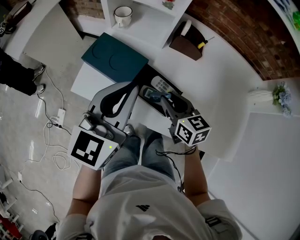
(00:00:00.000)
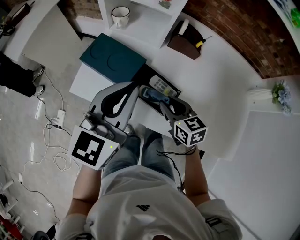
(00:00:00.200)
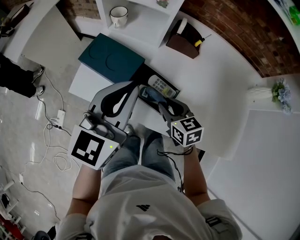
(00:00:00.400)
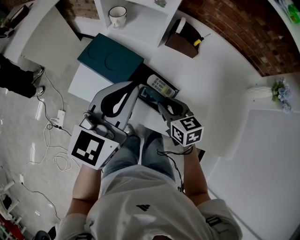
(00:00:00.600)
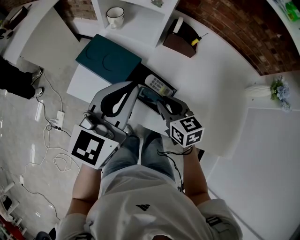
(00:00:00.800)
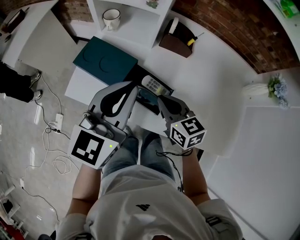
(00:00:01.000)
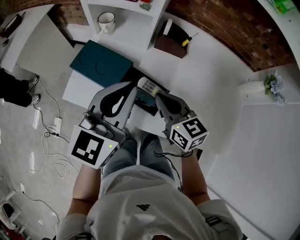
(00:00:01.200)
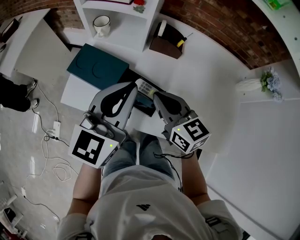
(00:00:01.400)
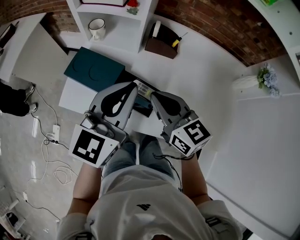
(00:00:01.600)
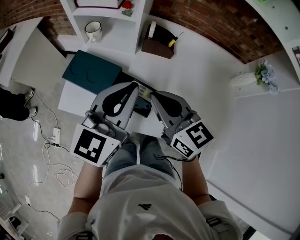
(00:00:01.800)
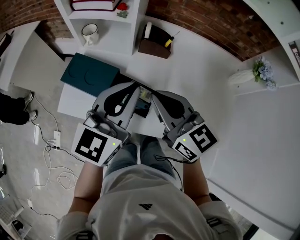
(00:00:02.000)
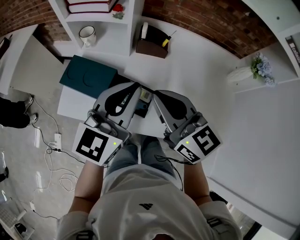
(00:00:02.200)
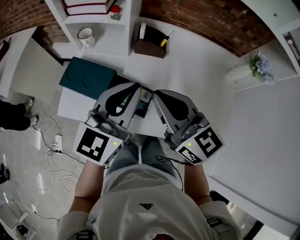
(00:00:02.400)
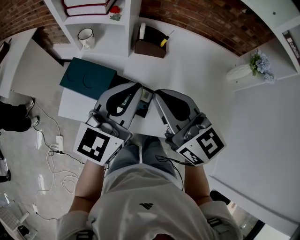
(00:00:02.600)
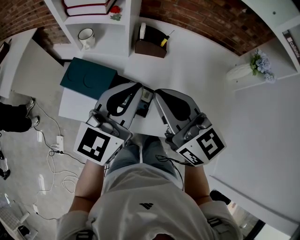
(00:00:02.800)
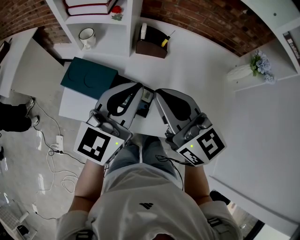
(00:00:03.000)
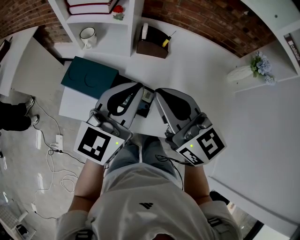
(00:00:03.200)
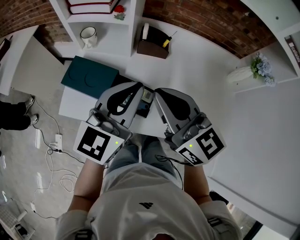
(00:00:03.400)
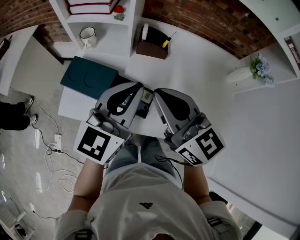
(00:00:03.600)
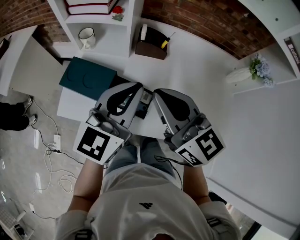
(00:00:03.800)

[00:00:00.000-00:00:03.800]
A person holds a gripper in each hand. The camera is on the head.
00:00:00.000 to 00:00:01.200: The right gripper heads upward, covering about 5 cm, and closes up.
00:00:01.200 to 00:00:02.600: The left gripper goes some 5 cm to the right. The right gripper moves upward, about 15 cm.
00:00:02.600 to 00:00:03.800: The two grippers keep their place.

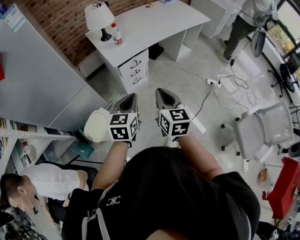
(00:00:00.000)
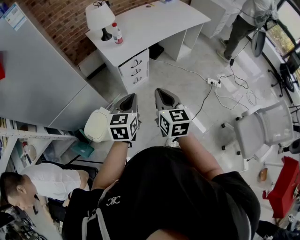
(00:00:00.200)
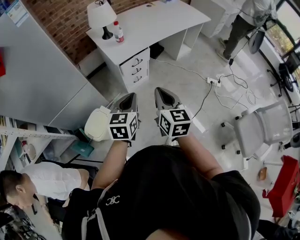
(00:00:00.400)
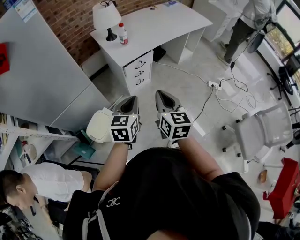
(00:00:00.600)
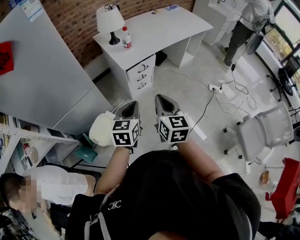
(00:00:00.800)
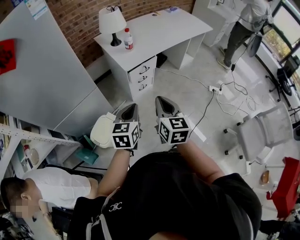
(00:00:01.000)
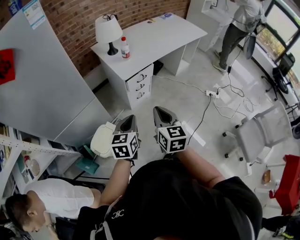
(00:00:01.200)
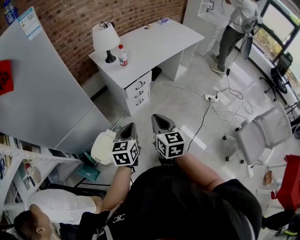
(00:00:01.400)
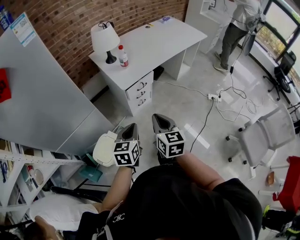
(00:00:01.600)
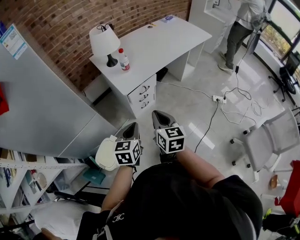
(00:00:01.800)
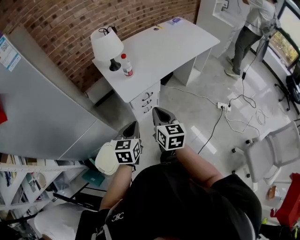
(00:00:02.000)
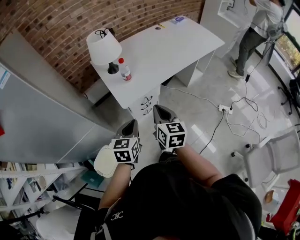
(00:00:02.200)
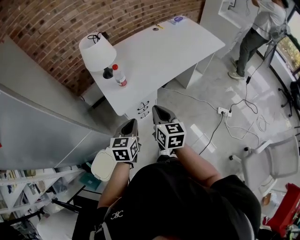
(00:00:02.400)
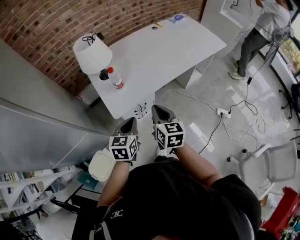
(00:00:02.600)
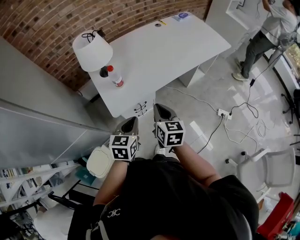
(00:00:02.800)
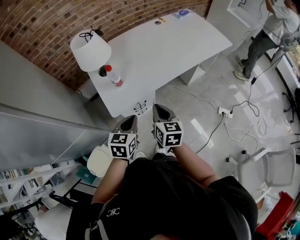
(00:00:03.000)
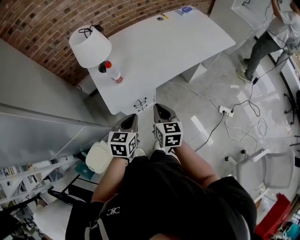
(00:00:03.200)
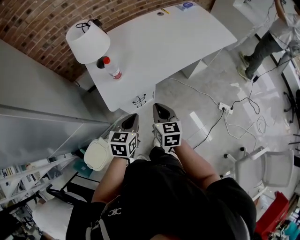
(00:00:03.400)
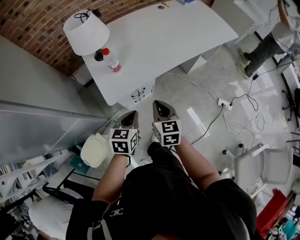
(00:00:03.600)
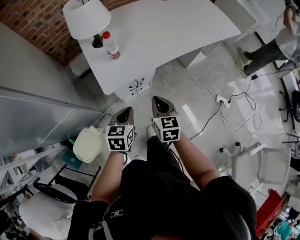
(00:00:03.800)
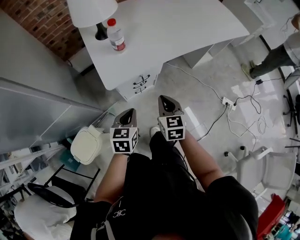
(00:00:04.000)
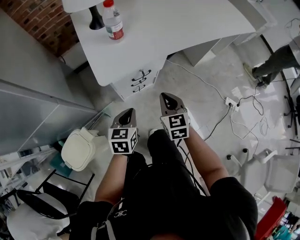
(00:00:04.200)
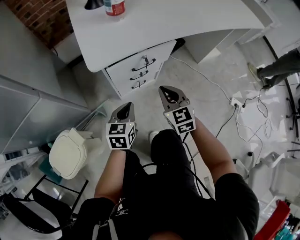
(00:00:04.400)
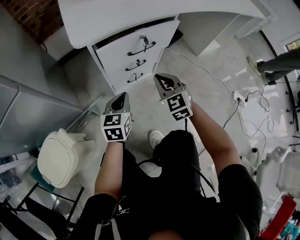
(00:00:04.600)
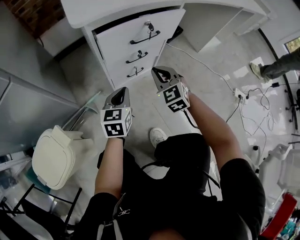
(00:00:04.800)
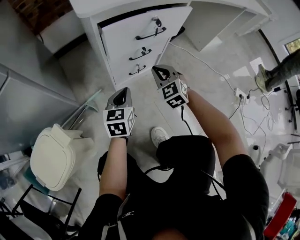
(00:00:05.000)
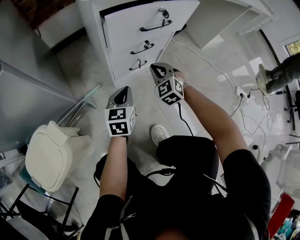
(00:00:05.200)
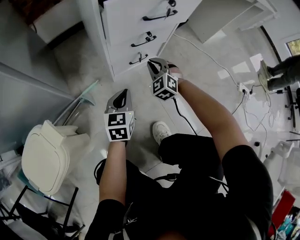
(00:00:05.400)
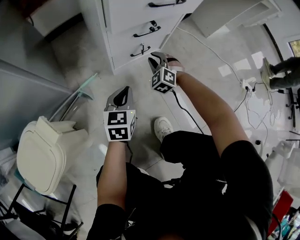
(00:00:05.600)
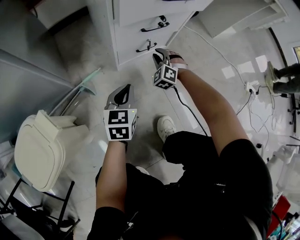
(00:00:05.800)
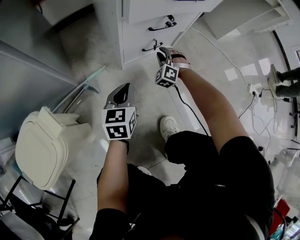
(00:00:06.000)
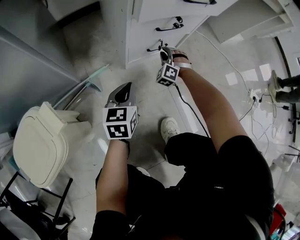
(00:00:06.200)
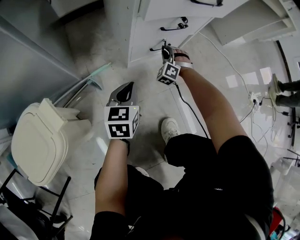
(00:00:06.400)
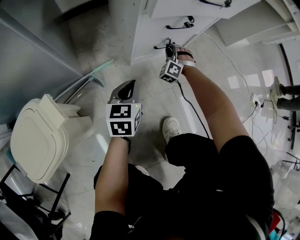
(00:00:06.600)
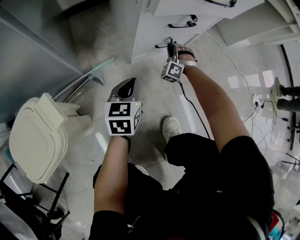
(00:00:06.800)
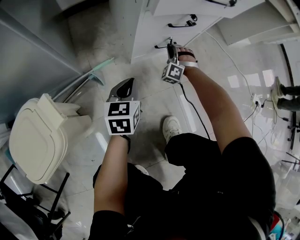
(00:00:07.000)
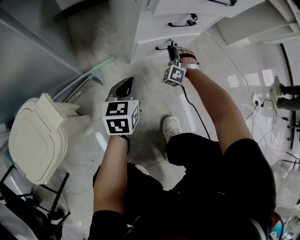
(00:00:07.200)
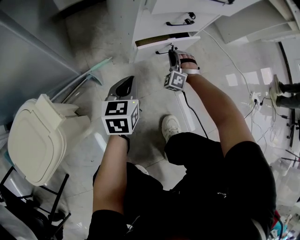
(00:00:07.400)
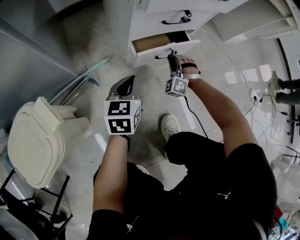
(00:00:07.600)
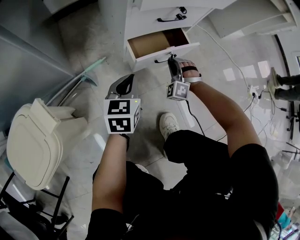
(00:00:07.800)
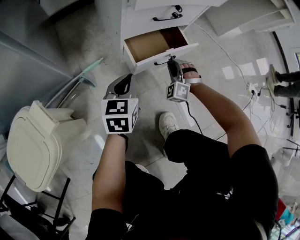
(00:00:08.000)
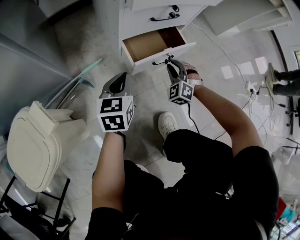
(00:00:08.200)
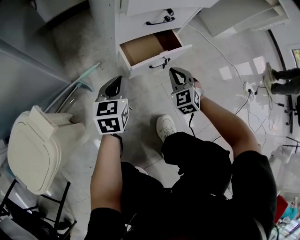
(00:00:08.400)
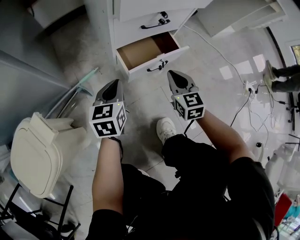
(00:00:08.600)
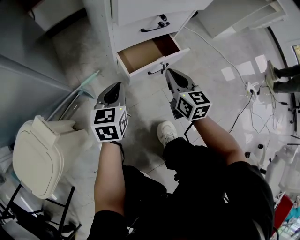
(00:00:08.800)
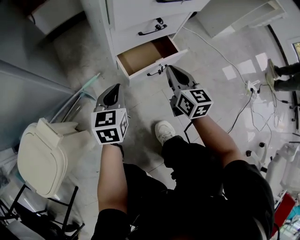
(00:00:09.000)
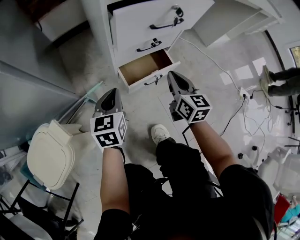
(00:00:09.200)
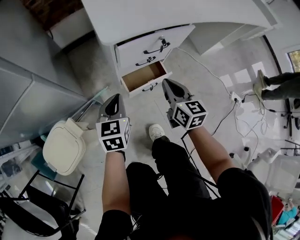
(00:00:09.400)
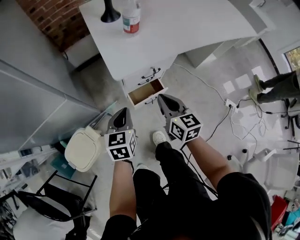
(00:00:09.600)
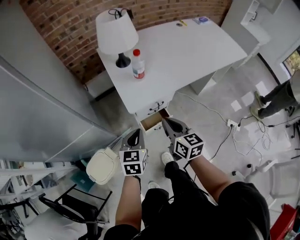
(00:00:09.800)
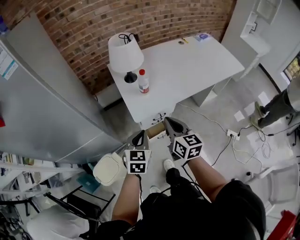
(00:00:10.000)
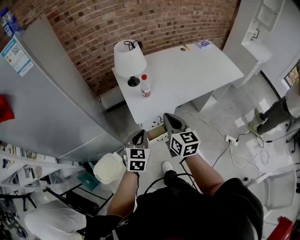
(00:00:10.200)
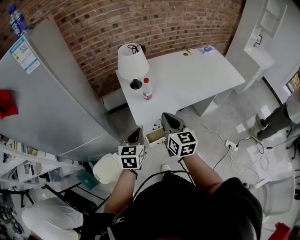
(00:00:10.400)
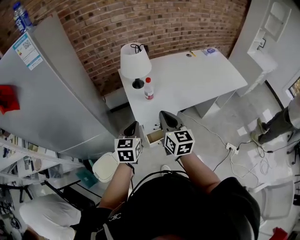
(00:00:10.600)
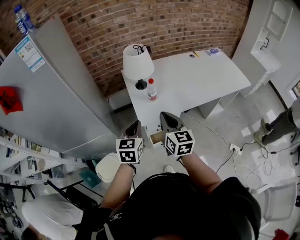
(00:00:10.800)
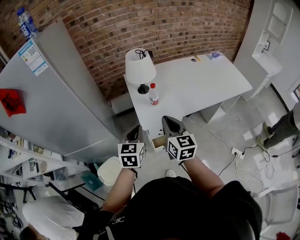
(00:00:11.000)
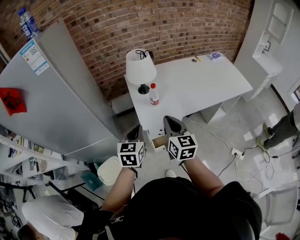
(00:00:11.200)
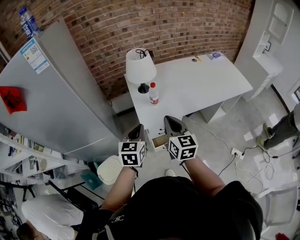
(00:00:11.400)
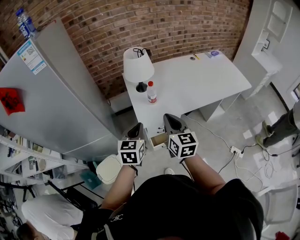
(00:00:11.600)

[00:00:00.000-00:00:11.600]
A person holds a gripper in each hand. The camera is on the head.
00:00:00.000 to 00:00:01.400: Both grippers move to the left, some 10 cm.
00:00:01.400 to 00:00:02.800: Both grippers move forward, about 35 cm.
00:00:02.800 to 00:00:04.400: The grippers both shift downward by about 40 cm. The right gripper swivels approximately 40 degrees.
00:00:04.400 to 00:00:05.800: The right gripper goes roughly 35 cm downward, and rotates around the line of its fingers by about 50 degrees, counterclockwise from behind. The left gripper heads downward, covering roughly 20 cm.
00:00:05.800 to 00:00:07.200: The left gripper ends up roughly 5 cm from where it was. The right gripper swivels some 20 degrees.
00:00:07.200 to 00:00:08.800: The right gripper goes approximately 20 cm upward and backward, and twists roughly 90 degrees clockwise, seen from behind.
00:00:08.800 to 00:00:10.200: The two grippers go some 70 cm upward.
00:00:10.200 to 00:00:11.600: The left gripper goes approximately 5 cm upward.

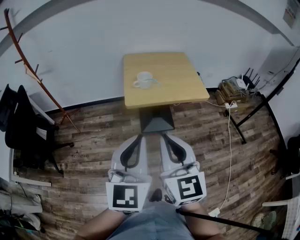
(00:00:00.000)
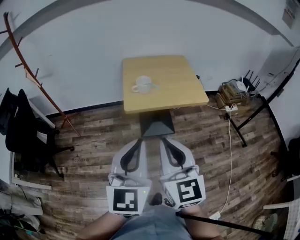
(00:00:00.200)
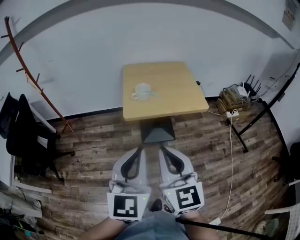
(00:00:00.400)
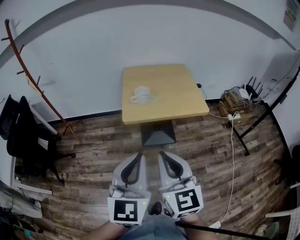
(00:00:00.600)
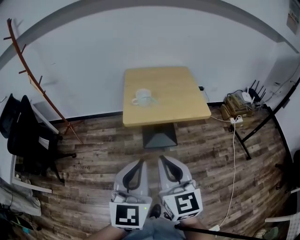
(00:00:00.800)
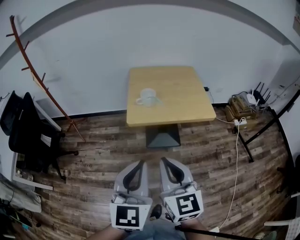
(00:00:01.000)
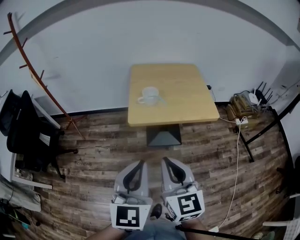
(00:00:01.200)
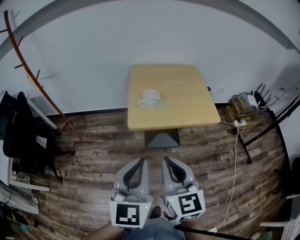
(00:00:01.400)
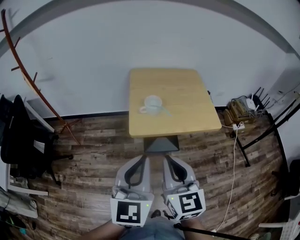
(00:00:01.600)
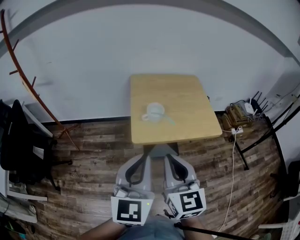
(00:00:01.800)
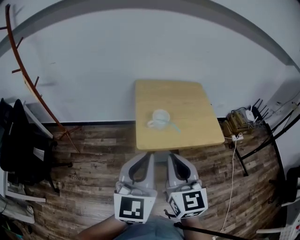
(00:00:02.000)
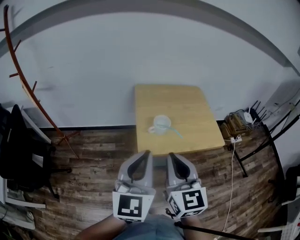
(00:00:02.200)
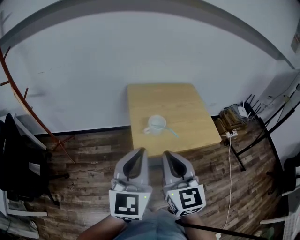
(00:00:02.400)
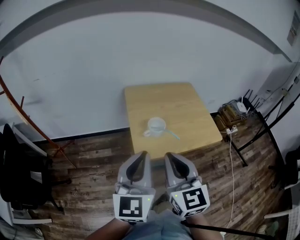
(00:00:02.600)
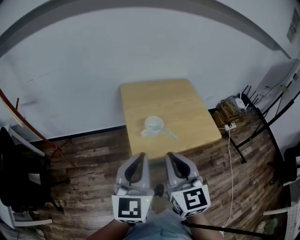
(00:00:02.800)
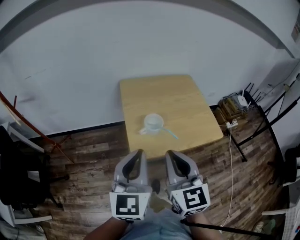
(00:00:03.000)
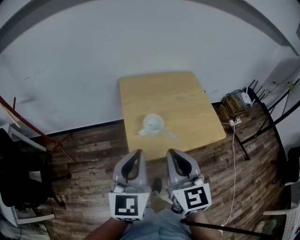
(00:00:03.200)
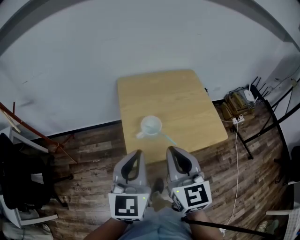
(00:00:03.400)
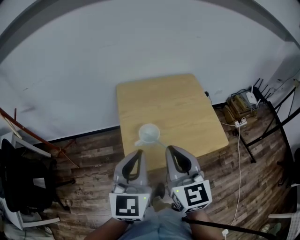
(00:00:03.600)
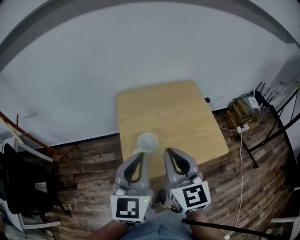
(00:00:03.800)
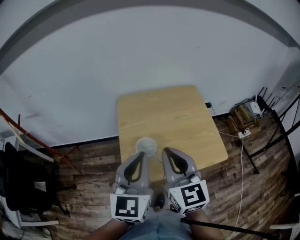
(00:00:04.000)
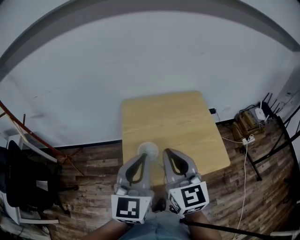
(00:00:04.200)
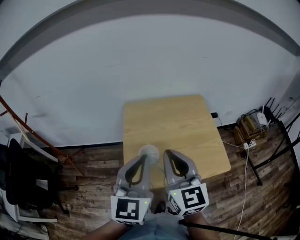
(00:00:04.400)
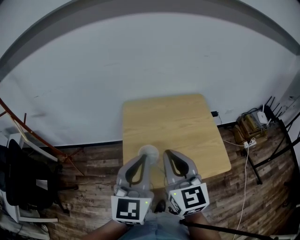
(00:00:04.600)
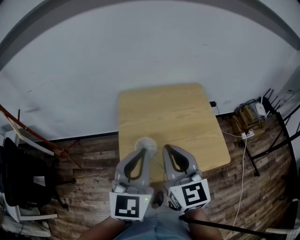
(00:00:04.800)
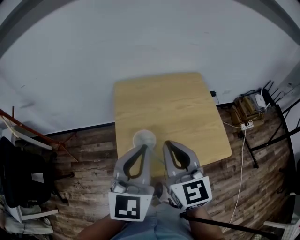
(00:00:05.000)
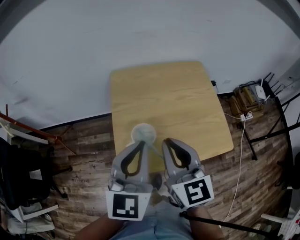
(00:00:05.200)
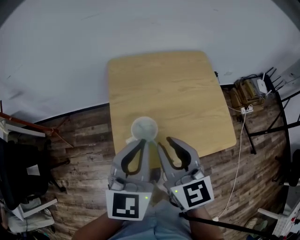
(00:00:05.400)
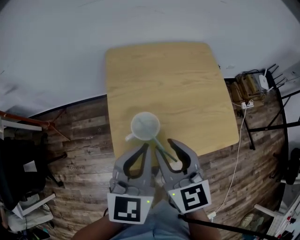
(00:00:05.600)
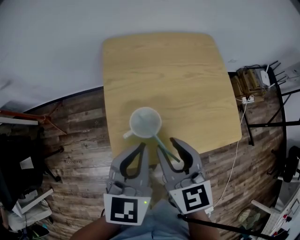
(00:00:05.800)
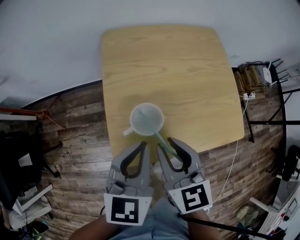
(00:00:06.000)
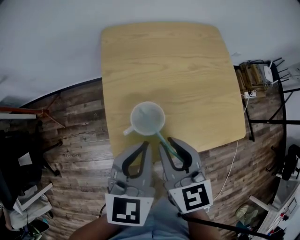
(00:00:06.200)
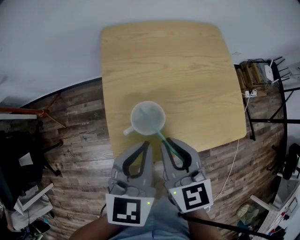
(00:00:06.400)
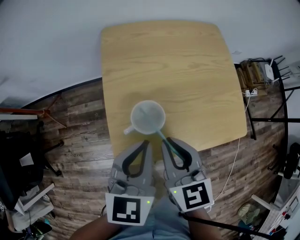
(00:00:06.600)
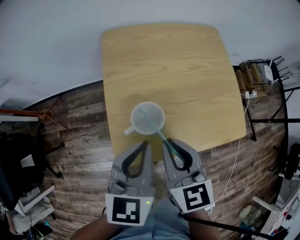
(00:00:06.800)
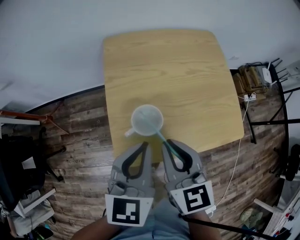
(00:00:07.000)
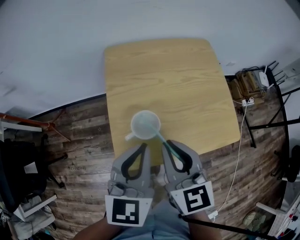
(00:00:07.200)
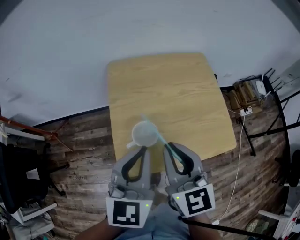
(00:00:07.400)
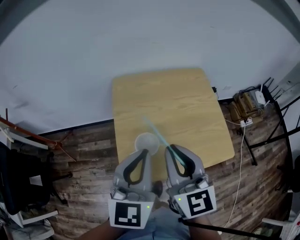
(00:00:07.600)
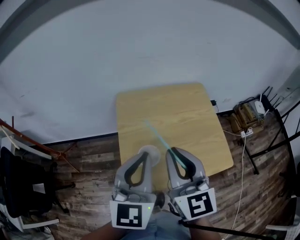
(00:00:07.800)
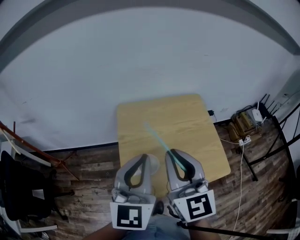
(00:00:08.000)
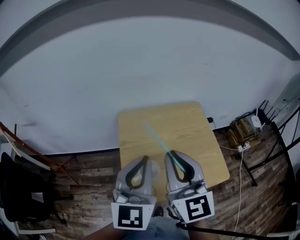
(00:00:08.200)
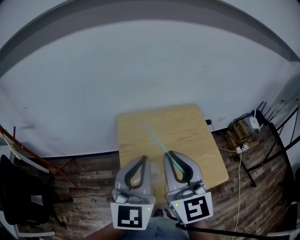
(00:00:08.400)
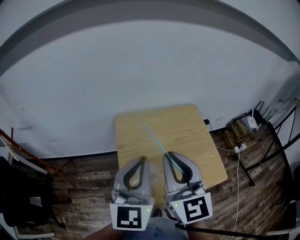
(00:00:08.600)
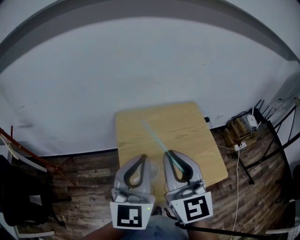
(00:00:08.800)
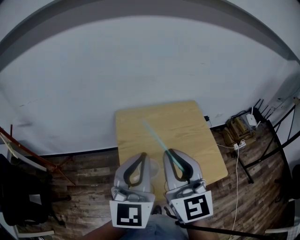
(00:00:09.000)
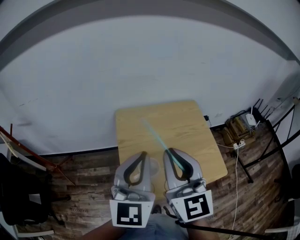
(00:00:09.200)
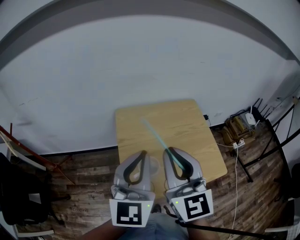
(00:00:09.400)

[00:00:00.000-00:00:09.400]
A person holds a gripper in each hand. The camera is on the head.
00:00:00.000 to 00:00:01.600: Both grippers travel together forward, roughly 15 cm.
00:00:01.600 to 00:00:03.200: Both grippers move forward, about 15 cm.
00:00:03.200 to 00:00:04.800: The grippers both shift forward and to the right by about 15 cm.
00:00:04.800 to 00:00:06.200: The two grippers go some 15 cm downward. The left gripper rotates approximately 20 degrees; the right gripper swivels roughly 20 degrees.
00:00:06.200 to 00:00:07.800: Both grippers travel together upward, some 15 cm. The right gripper changes its angle by approximately 20 degrees, while the left gripper swivels some 20 degrees.
00:00:07.800 to 00:00:09.400: The right gripper travels upward by some 5 cm. Meanwhile the left gripper changes place by some 5 cm.
